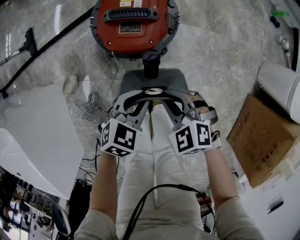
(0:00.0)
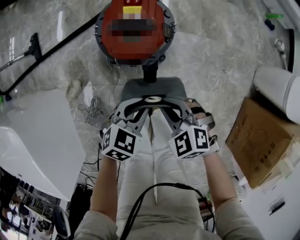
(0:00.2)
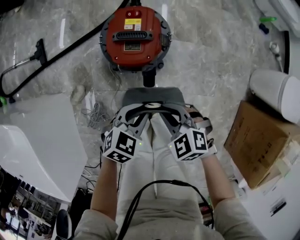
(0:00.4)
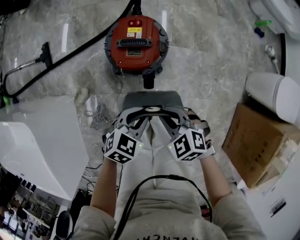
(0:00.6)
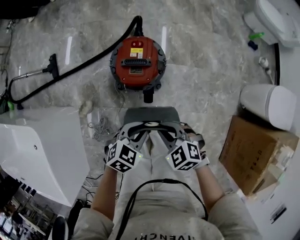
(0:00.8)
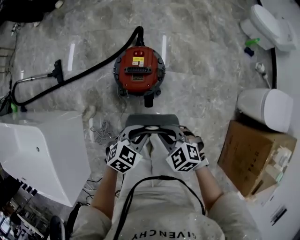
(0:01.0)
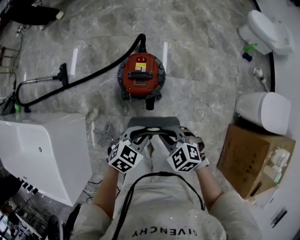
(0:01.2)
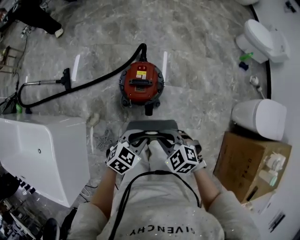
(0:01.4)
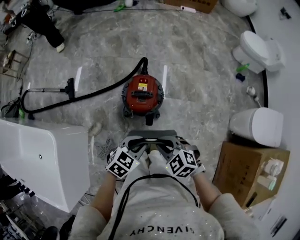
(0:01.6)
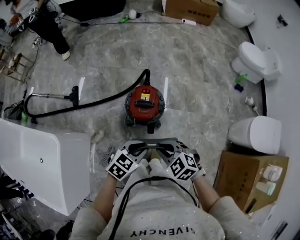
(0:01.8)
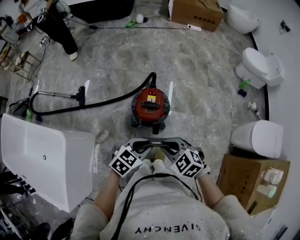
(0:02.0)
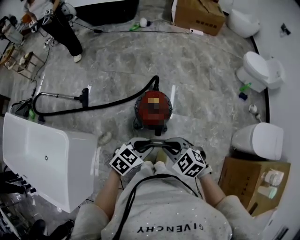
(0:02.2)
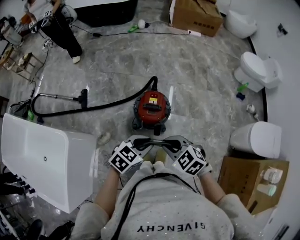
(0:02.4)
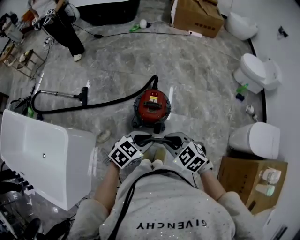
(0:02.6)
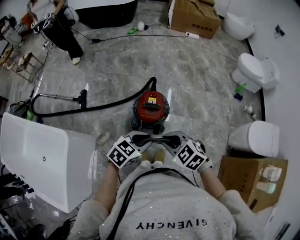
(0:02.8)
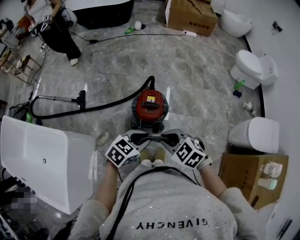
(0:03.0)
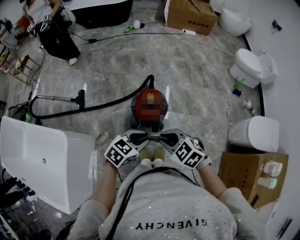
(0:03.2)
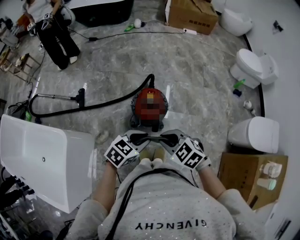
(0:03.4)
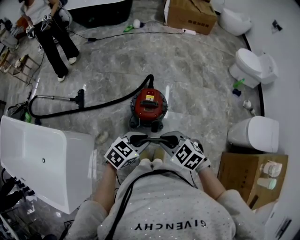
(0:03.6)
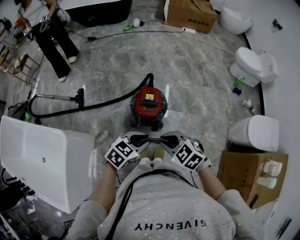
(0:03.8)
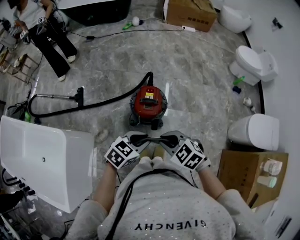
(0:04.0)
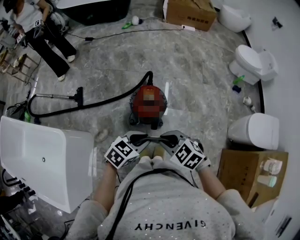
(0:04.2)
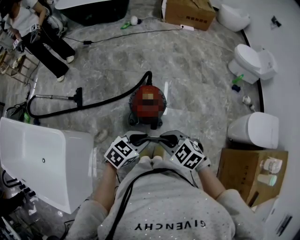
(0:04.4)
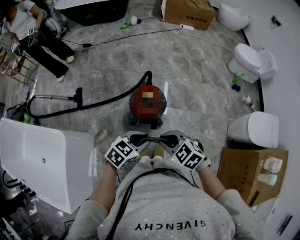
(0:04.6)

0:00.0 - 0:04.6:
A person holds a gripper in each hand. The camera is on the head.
0:00.0 - 0:01.6: Both grippers move upward, about 30 cm.
0:01.6 - 0:03.0: The two grippers go approximately 10 cm upward.
0:03.0 - 0:04.6: There are only small adjustments of the grippers.

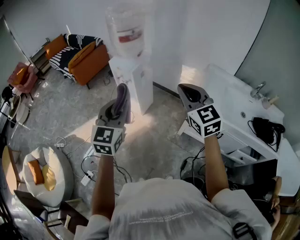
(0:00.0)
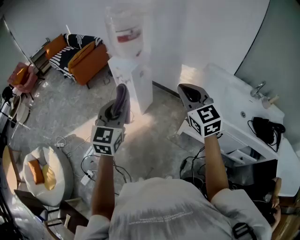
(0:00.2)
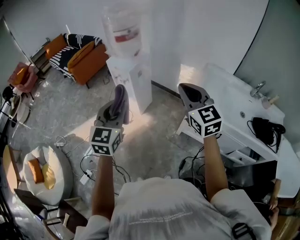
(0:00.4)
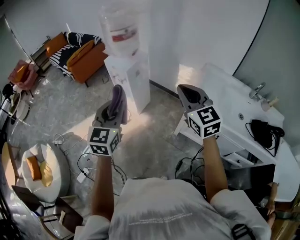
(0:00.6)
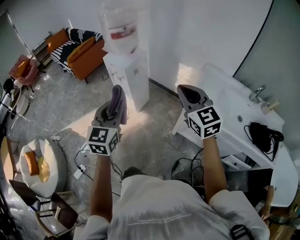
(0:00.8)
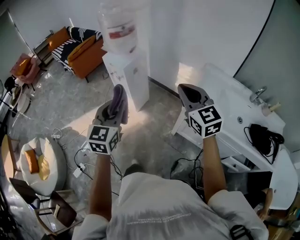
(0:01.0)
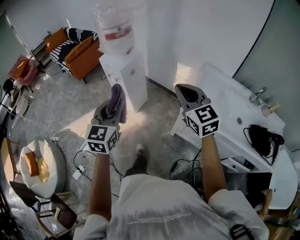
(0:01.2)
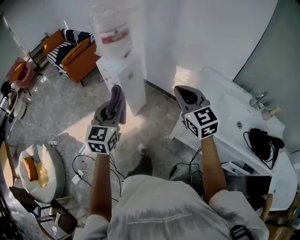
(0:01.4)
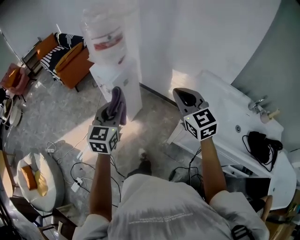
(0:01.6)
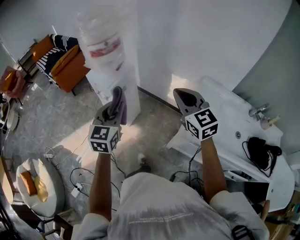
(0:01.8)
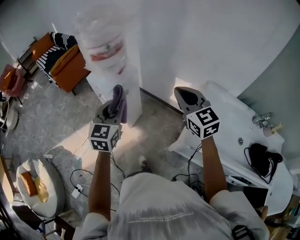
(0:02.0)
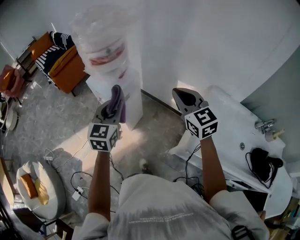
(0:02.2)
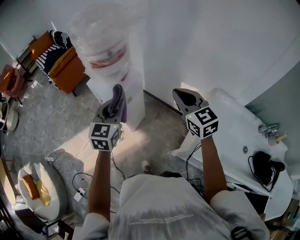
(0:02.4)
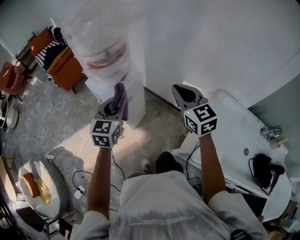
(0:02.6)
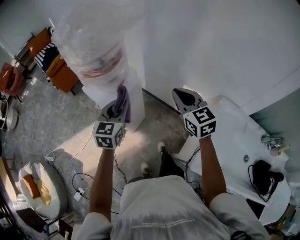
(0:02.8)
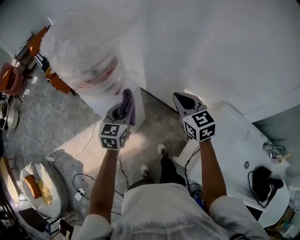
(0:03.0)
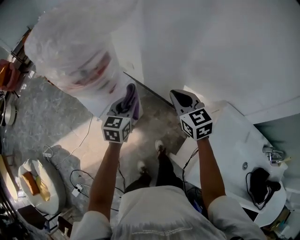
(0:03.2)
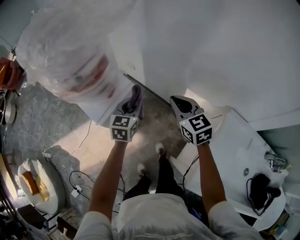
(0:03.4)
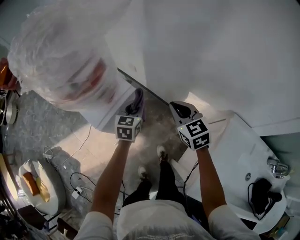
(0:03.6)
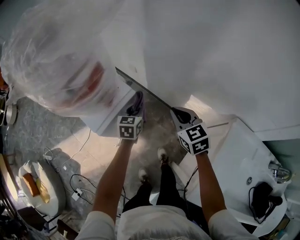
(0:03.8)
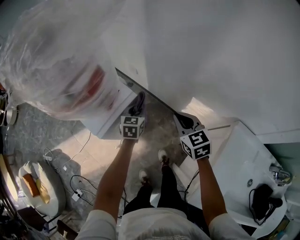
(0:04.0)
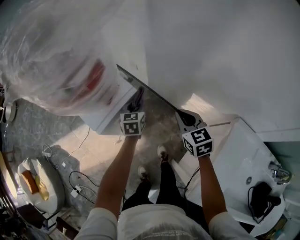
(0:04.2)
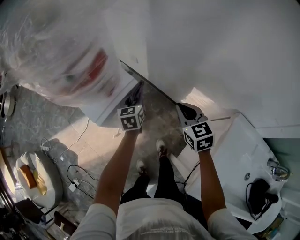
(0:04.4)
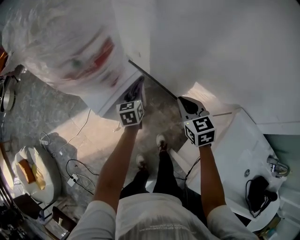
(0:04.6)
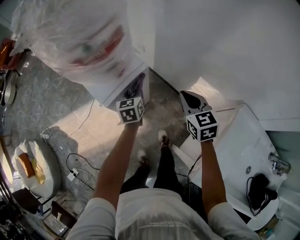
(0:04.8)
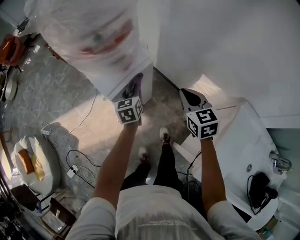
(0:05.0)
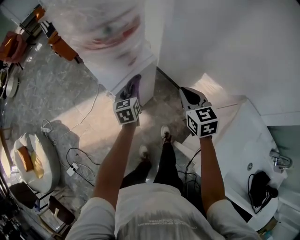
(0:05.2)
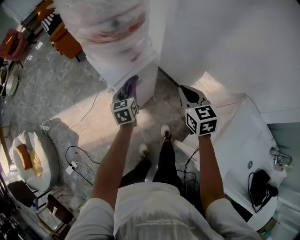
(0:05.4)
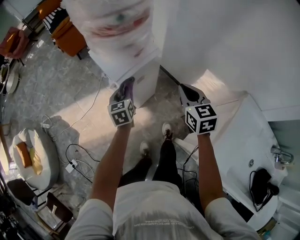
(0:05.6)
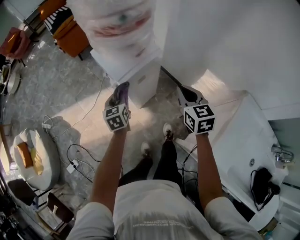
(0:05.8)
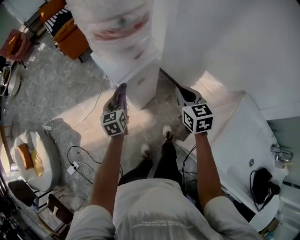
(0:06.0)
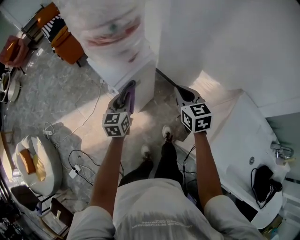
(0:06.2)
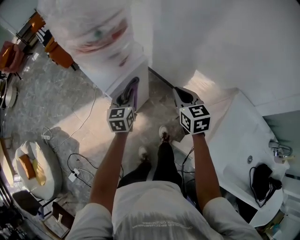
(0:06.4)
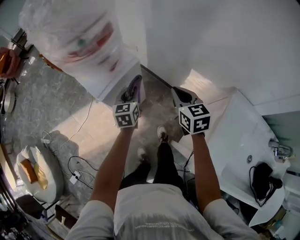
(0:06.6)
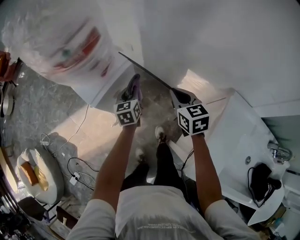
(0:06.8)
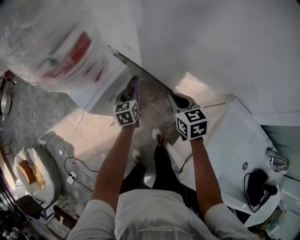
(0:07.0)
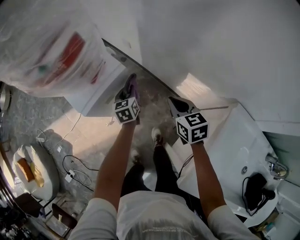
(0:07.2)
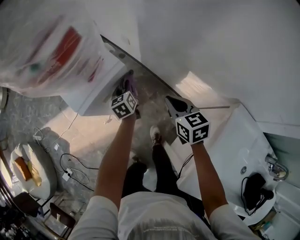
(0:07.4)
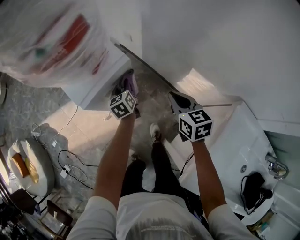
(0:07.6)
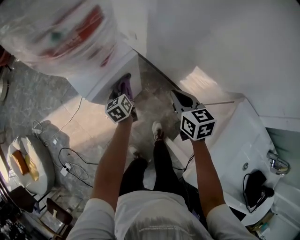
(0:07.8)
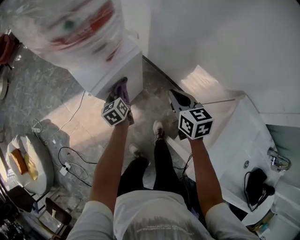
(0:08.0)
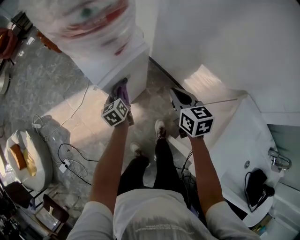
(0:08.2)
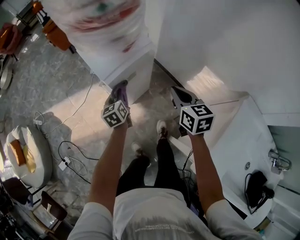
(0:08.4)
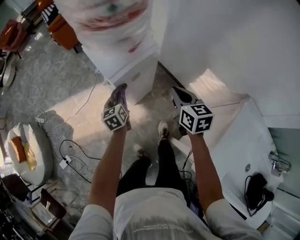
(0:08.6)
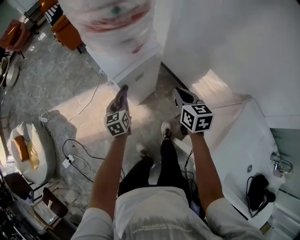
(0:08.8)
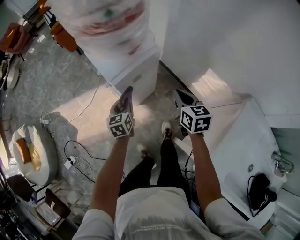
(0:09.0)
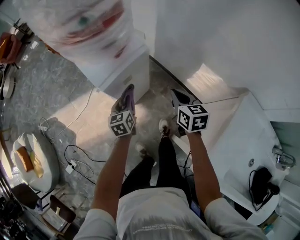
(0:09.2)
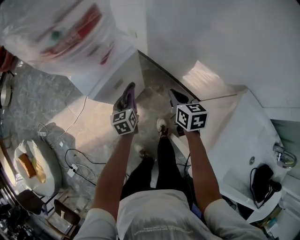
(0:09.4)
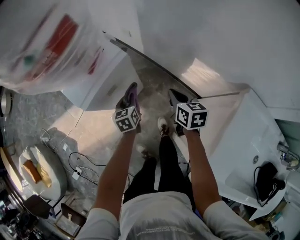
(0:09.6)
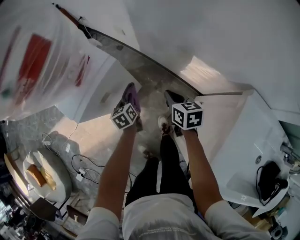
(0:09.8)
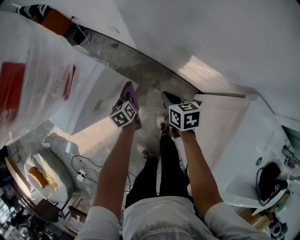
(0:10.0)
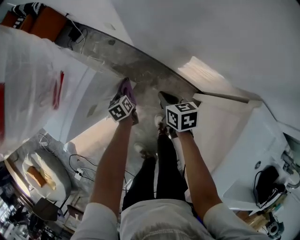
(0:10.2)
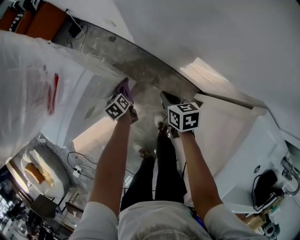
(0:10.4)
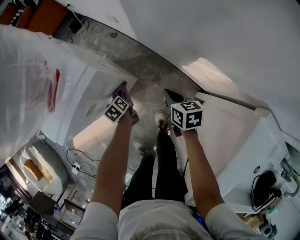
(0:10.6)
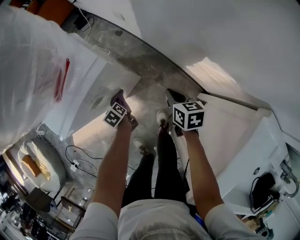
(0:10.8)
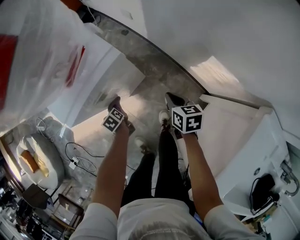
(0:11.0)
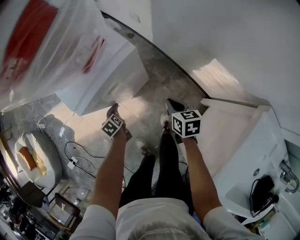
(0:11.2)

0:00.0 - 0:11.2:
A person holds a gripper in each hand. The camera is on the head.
0:00.0 - 0:01.6: Both grippers travel together forward and to the right, approximately 20 cm.
0:01.6 - 0:03.2: Both grippers are carried forward, some 40 cm.
0:03.2 - 0:04.8: Both grippers travel together downward, roughly 10 cm. The left gripper turns by approximately 30 degrees.
0:04.8 - 0:06.4: The left gripper shifts some 10 cm backward, and goes to the left and returns, some 15 cm each way. Meanwhile the right gripper goes about 5 cm backward.
0:06.4 - 0:08.0: The right gripper heads downward, covering approximately 10 cm, while the left gripper moves downward, about 15 cm, and changes its angle by roughly 30 degrees.
0:08.0 - 0:09.6: The left gripper travels to the right by about 10 cm. The right gripper shifts some 10 cm downward and to the right.
0:09.6 - 0:11.2: The left gripper moves some 25 cm, and turns by about 40 degrees; the right gripper is displaced downward by approximately 15 cm.

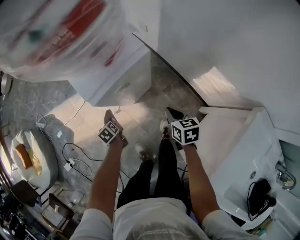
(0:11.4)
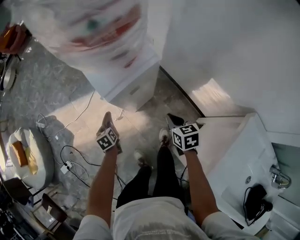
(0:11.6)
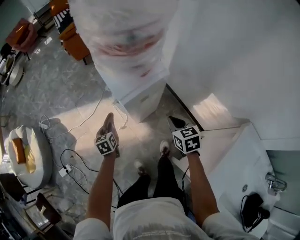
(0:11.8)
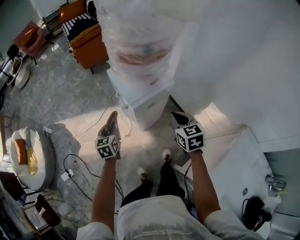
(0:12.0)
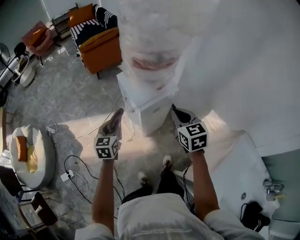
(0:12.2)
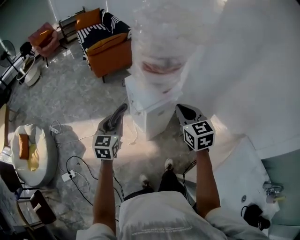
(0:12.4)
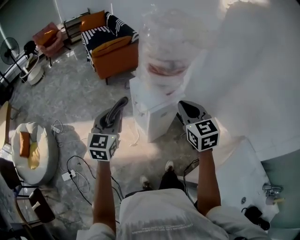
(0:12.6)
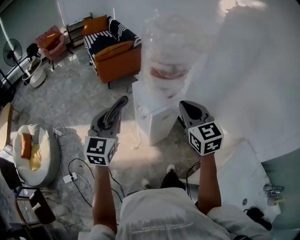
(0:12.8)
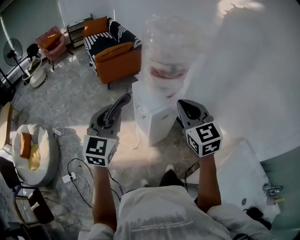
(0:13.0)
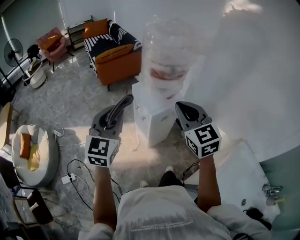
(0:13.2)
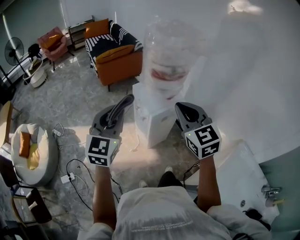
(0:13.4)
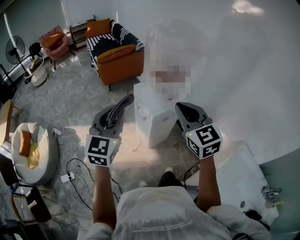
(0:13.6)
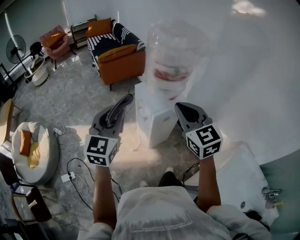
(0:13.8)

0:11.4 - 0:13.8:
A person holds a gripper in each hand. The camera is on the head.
0:11.4 - 0:12.6: The grippers both shift upward by approximately 50 cm. The right gripper swivels about 50 degrees, while the left gripper points its fingers approximately 50 degrees further upward.
0:12.6 - 0:13.8: The right gripper is displaced upward, to the left and backward by some 10 cm. The left gripper shifts roughly 10 cm upward and backward.

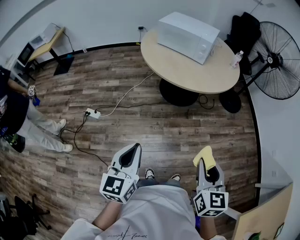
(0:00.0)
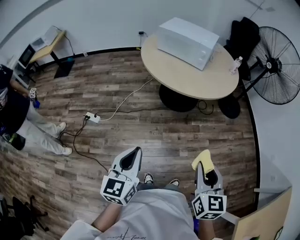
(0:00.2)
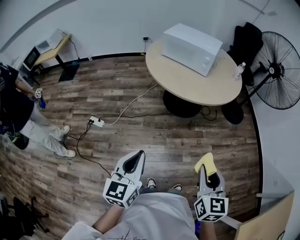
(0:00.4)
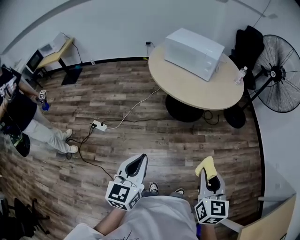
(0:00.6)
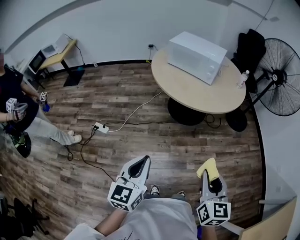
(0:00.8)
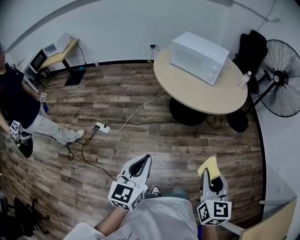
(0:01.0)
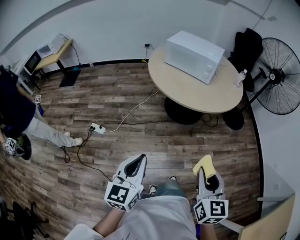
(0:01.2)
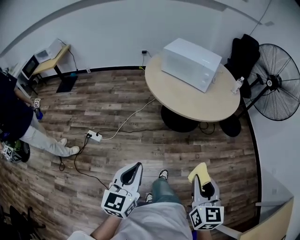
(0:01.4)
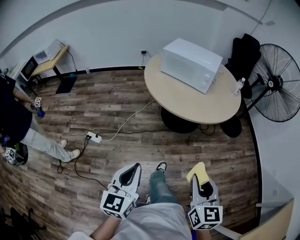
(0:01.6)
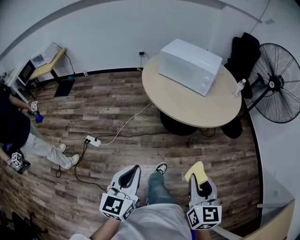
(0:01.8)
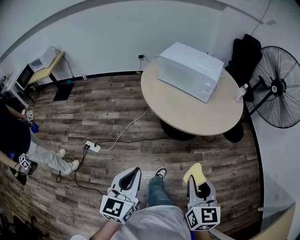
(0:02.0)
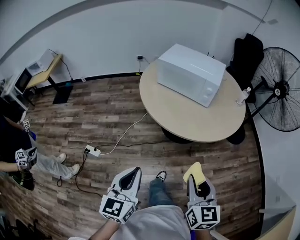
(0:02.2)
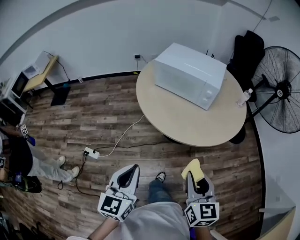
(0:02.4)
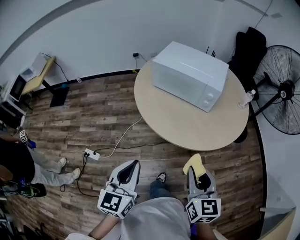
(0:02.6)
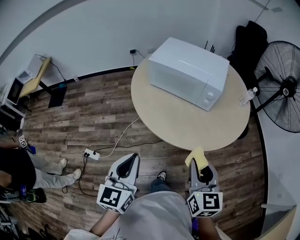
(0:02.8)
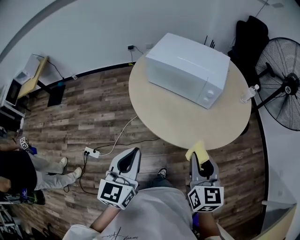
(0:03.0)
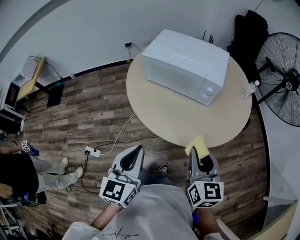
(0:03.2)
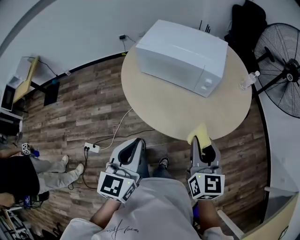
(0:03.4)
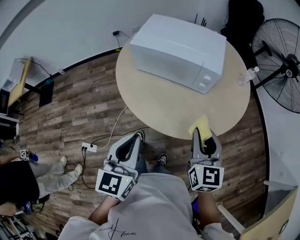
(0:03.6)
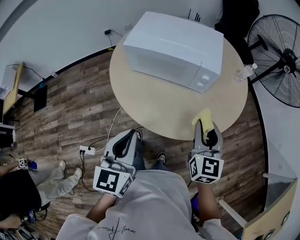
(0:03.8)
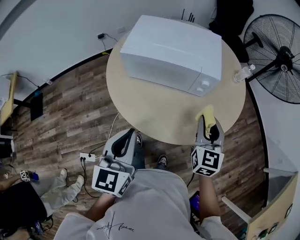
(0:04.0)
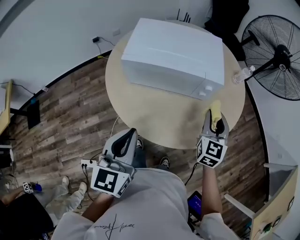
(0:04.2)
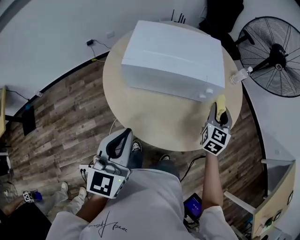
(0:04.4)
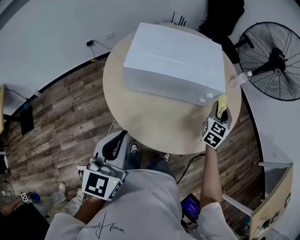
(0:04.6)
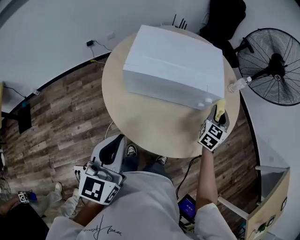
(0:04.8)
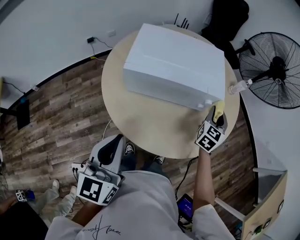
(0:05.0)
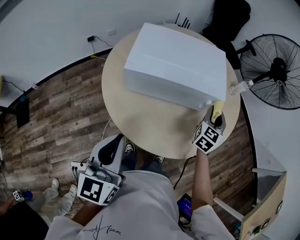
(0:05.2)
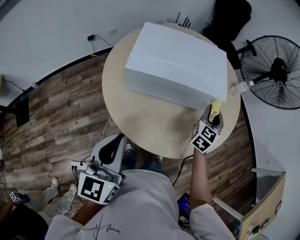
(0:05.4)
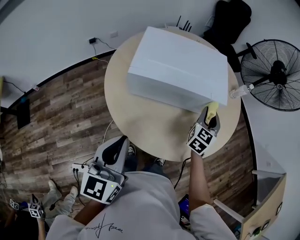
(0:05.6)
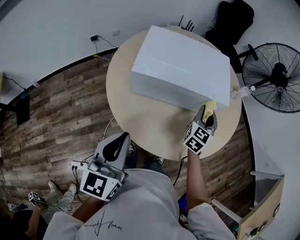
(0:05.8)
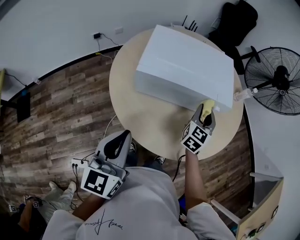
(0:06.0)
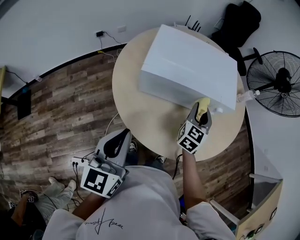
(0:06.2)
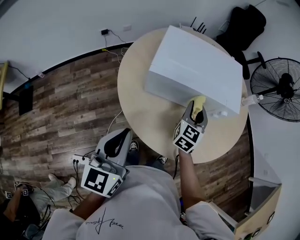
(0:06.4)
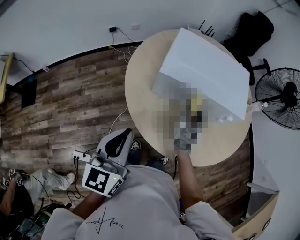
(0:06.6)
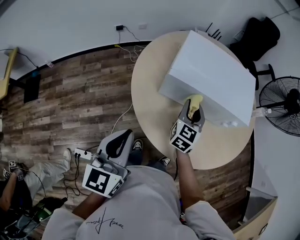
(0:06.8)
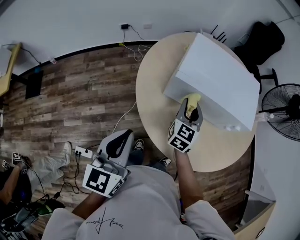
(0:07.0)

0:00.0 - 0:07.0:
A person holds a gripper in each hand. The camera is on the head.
0:00.0 - 0:01.4: The right gripper heads to the left, covering approximately 5 cm; the left gripper shifts by about 5 cm.
0:01.4 - 0:02.8: Both grippers move forward, roughly 35 cm.
0:02.8 - 0:04.2: The left gripper moves roughly 25 cm, while the right gripper shifts by some 25 cm, and turns by about 30 degrees.
0:04.2 - 0:05.6: The left gripper heads to the left, covering roughly 10 cm. The right gripper heads forward, covering about 10 cm.
0:05.6 - 0:07.0: The left gripper heads to the left, covering roughly 10 cm, while the right gripper is displaced to the left by some 25 cm, and turns by roughly 20 degrees.
